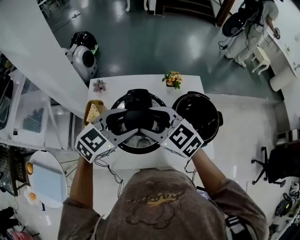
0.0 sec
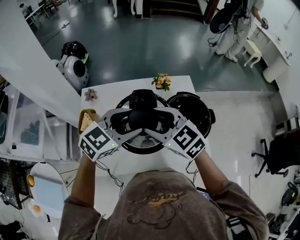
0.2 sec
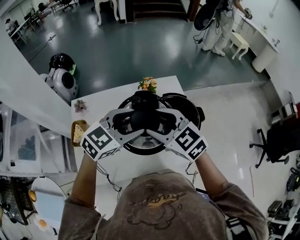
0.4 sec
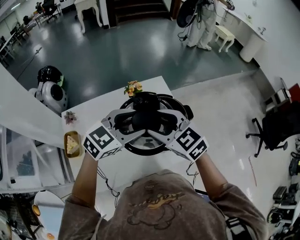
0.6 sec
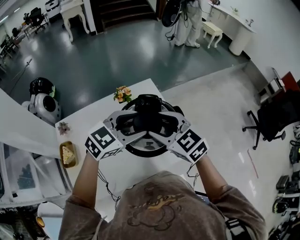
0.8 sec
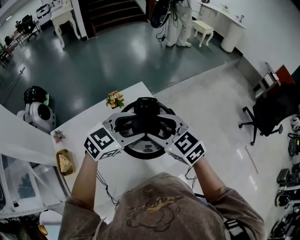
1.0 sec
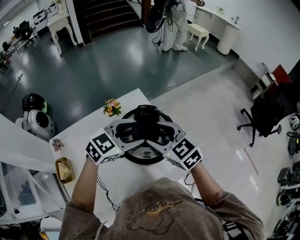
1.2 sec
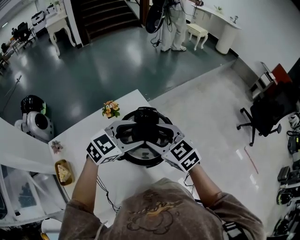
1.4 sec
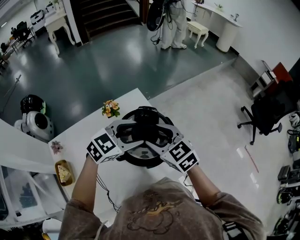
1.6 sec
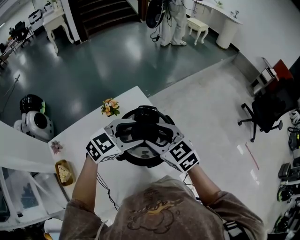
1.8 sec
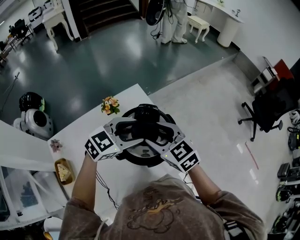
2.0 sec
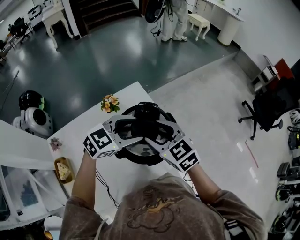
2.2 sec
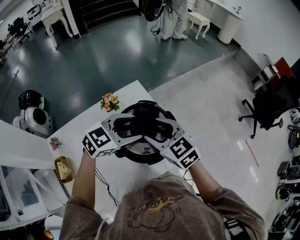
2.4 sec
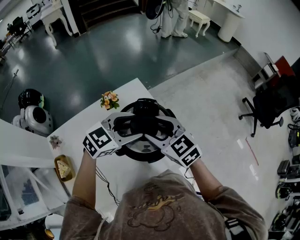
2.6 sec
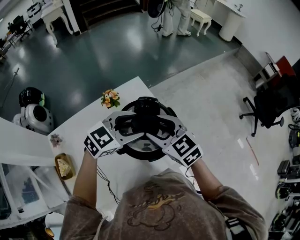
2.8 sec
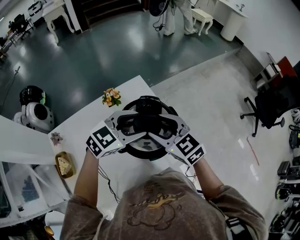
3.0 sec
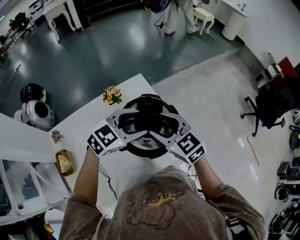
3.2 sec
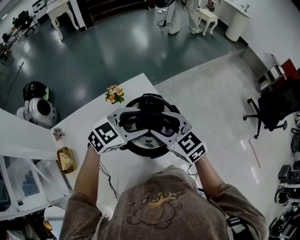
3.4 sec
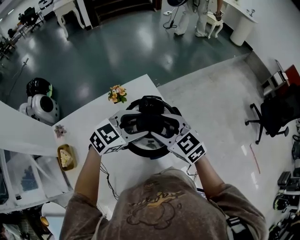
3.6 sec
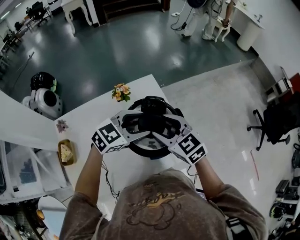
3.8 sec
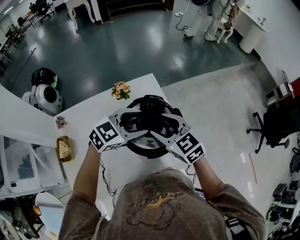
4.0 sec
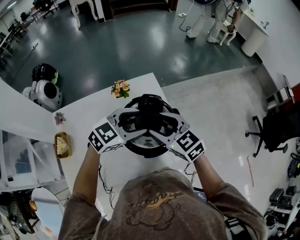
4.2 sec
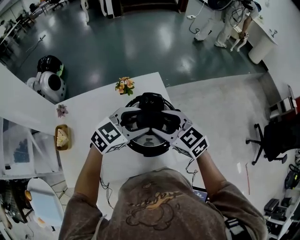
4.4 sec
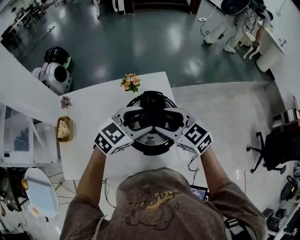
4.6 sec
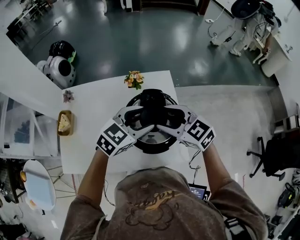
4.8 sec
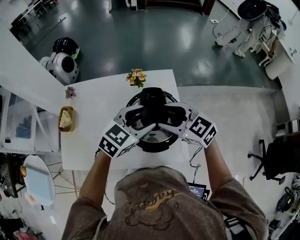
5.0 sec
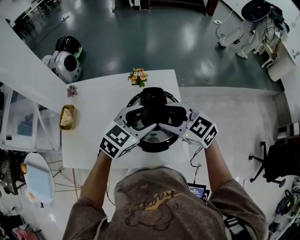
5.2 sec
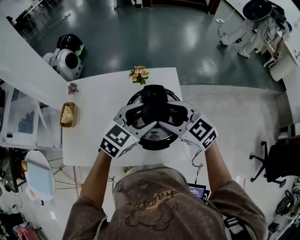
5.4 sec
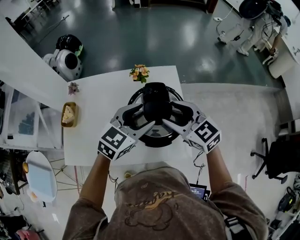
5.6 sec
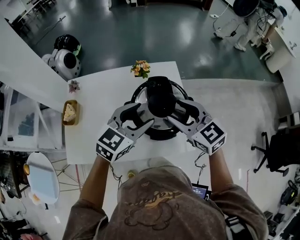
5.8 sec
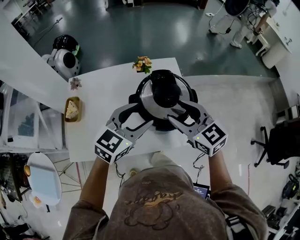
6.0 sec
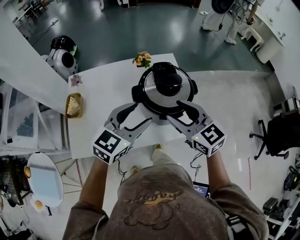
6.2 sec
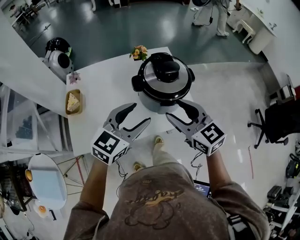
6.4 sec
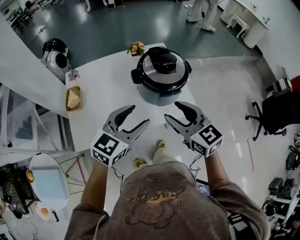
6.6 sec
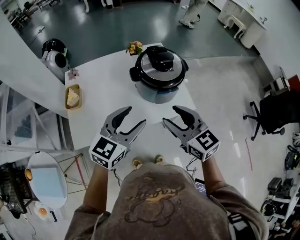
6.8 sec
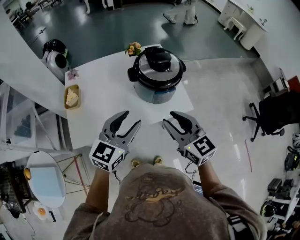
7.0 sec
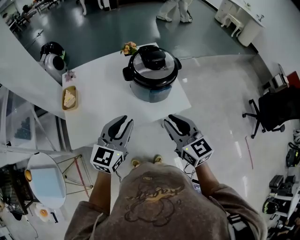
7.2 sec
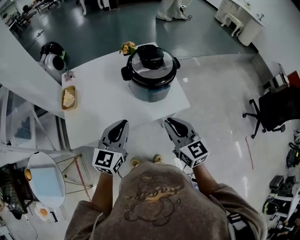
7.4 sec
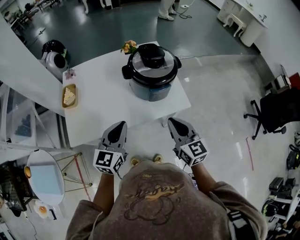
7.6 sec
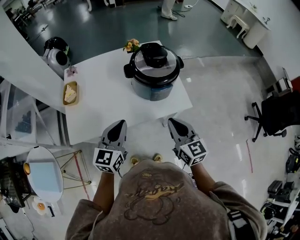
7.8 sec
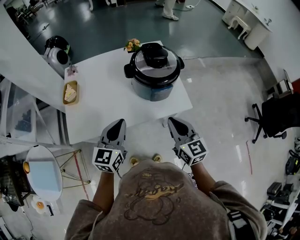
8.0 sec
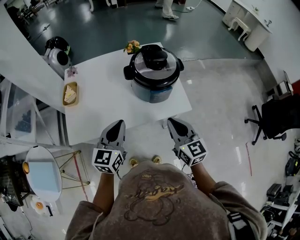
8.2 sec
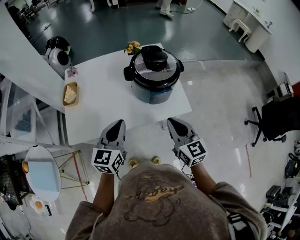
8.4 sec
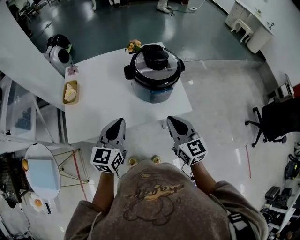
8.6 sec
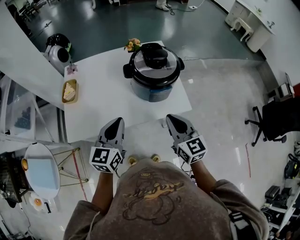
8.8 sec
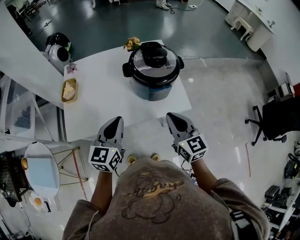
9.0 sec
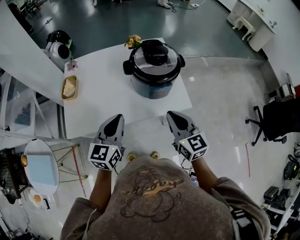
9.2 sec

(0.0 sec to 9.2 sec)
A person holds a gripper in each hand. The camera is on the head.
0.0 sec - 1.6 sec: The left gripper ends up approximately 25 cm from where it was, and changes its angle by roughly 40 degrees. Meanwhile the right gripper shifts by roughly 25 cm, and changes its angle by about 40 degrees.
1.6 sec - 3.0 sec: Both grippers stay put.
3.0 sec - 4.6 sec: The left gripper turns by about 30 degrees; the right gripper swivels approximately 30 degrees.
4.6 sec - 6.2 sec: The left gripper travels backward and to the left by about 15 cm. Meanwhile the right gripper shifts about 10 cm backward.
6.2 sec - 7.6 sec: The grippers both shift backward and downward by roughly 15 cm. The left gripper closes up. The right gripper turns by approximately 20 degrees, and closes.
7.6 sec - 9.2 sec: The grippers make only small movements.

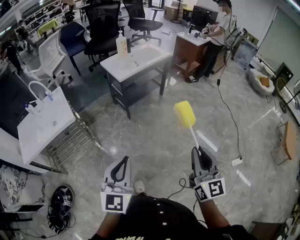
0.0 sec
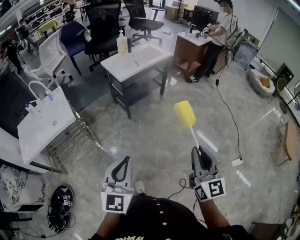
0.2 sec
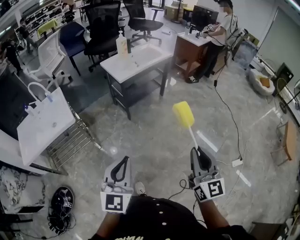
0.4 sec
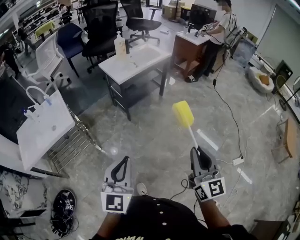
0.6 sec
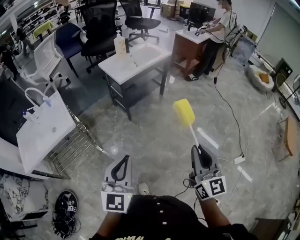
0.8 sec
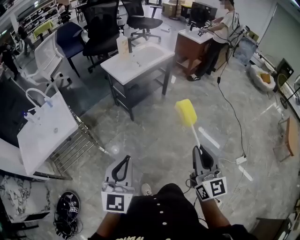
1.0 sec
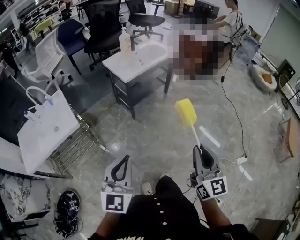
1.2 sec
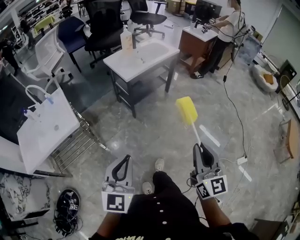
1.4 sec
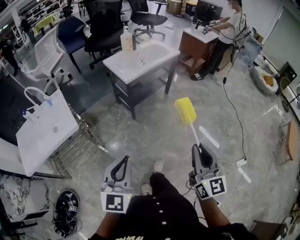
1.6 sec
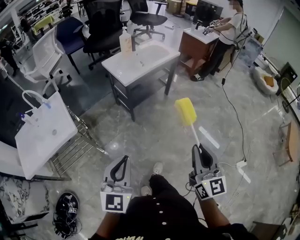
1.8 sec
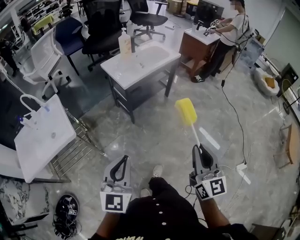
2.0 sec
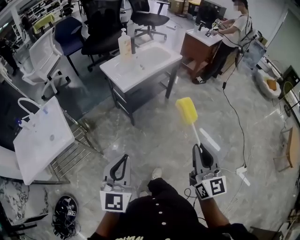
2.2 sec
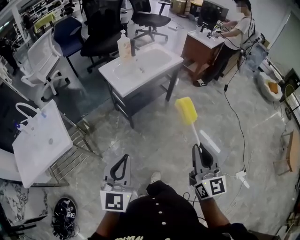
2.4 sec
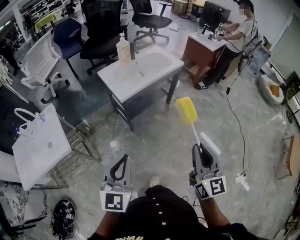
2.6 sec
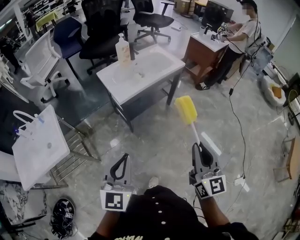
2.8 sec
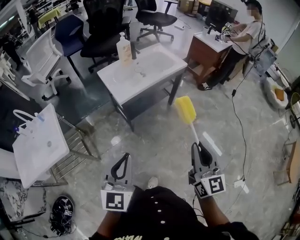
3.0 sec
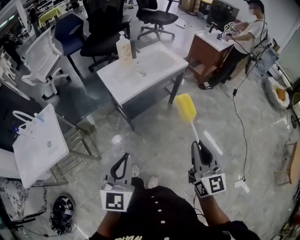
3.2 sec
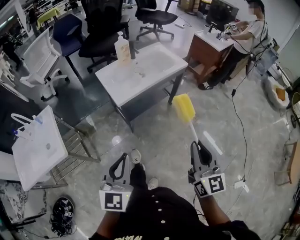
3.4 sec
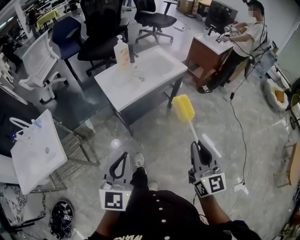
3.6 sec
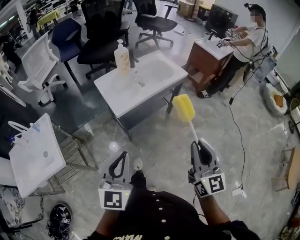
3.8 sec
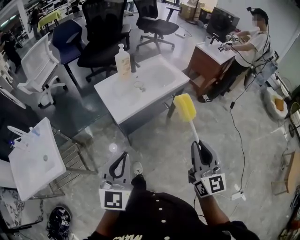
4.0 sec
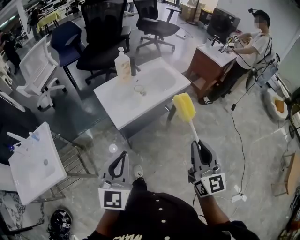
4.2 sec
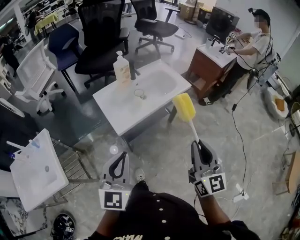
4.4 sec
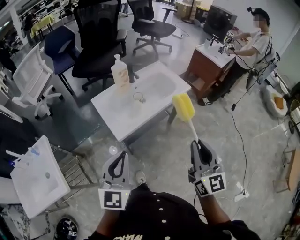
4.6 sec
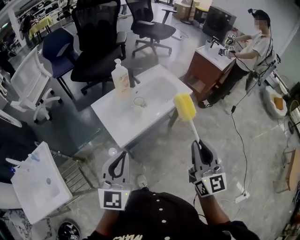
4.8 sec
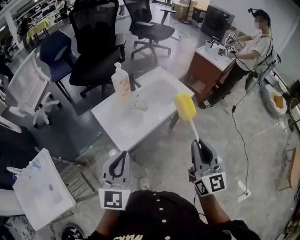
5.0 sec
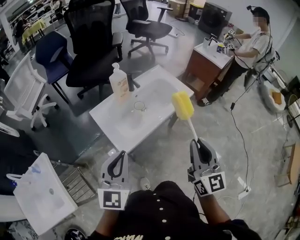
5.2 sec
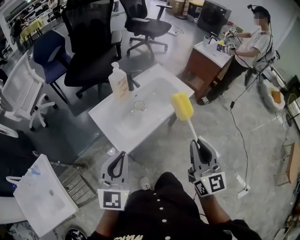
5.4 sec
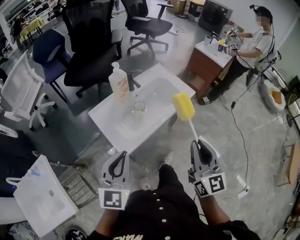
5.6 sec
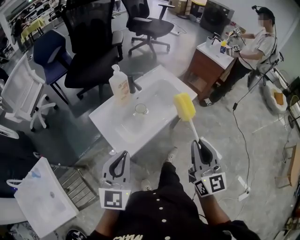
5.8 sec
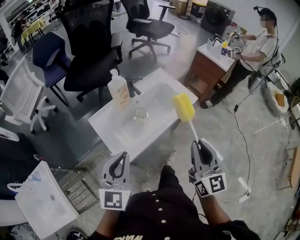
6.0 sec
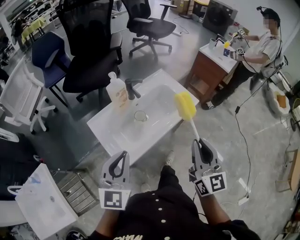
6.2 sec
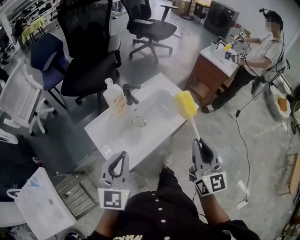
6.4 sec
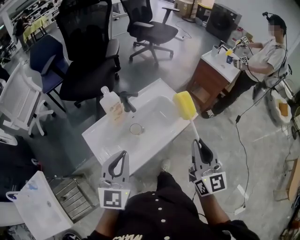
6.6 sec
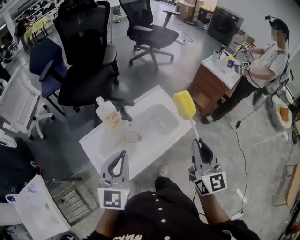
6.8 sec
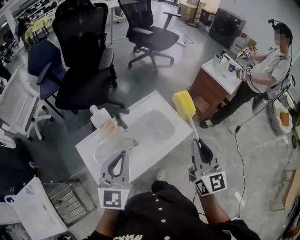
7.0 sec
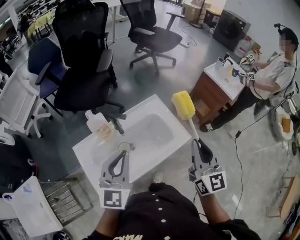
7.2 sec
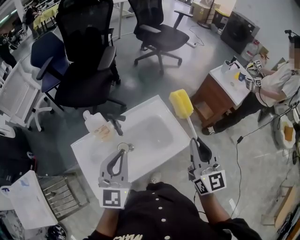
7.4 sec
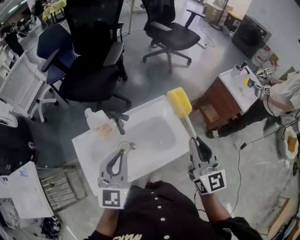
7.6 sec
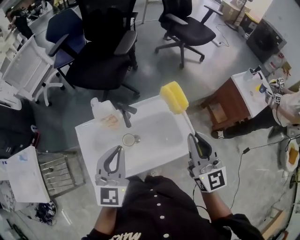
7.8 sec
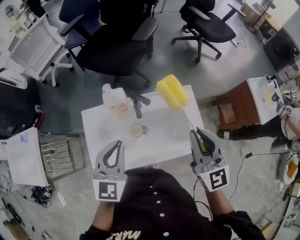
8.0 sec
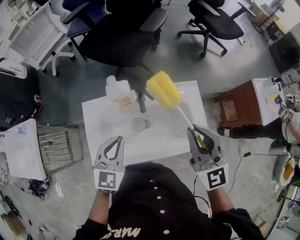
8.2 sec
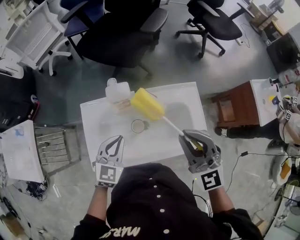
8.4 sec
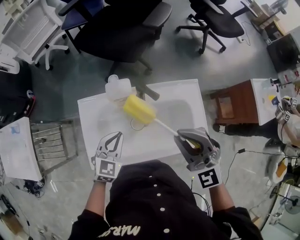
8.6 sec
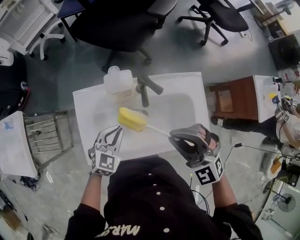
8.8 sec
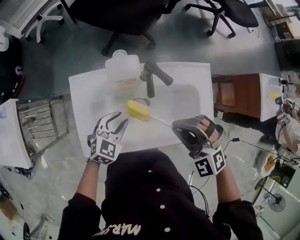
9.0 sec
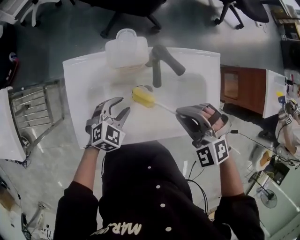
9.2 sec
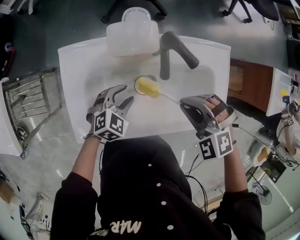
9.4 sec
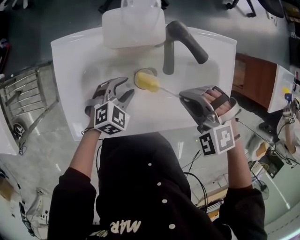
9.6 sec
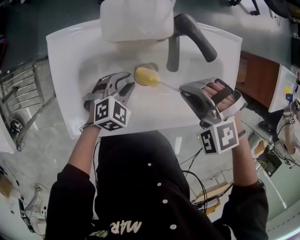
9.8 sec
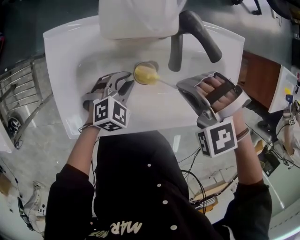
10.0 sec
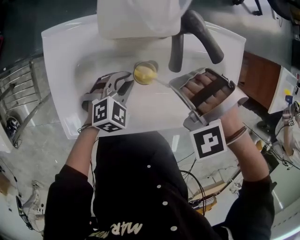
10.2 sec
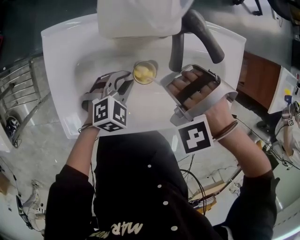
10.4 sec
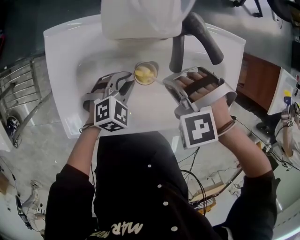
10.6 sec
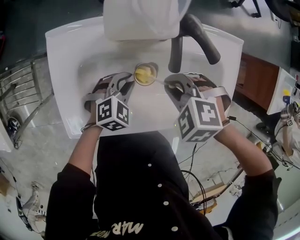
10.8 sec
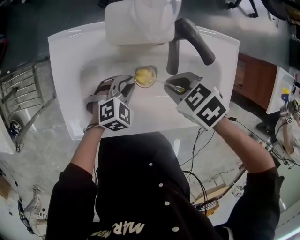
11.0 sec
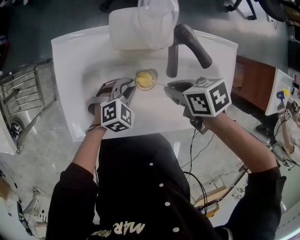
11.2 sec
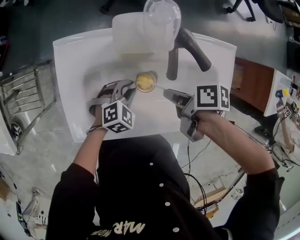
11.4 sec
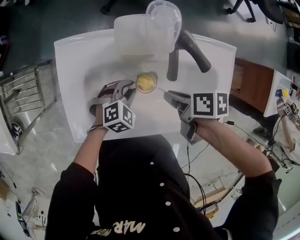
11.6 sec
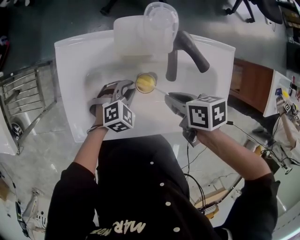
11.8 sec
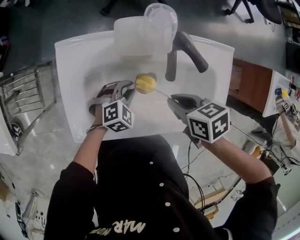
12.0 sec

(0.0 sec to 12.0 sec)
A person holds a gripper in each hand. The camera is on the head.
0.0 sec - 1.6 sec: The two grippers go approximately 15 cm forward and to the left.
1.6 sec - 3.0 sec: The two grippers go some 25 cm forward.
3.0 sec - 4.4 sec: The two grippers go roughly 20 cm forward.
4.4 sec - 6.0 sec: Both grippers travel together forward, approximately 20 cm.
6.0 sec - 7.6 sec: The left gripper moves forward and to the right, roughly 30 cm; the right gripper is displaced forward by about 35 cm.
7.6 sec - 9.0 sec: The right gripper moves to the left, downward and forward, roughly 25 cm, and angles its fingers downward, by approximately 40 degrees. The left gripper travels downward by about 30 cm, tips its fingers downward by roughly 30 degrees, and opens.
9.0 sec - 10.4 sec: Both grippers travel together downward, about 15 cm. The right gripper points its fingers approximately 30 degrees further downward.
10.4 sec - 12.0 sec: The right gripper rolls clockwise, seen from behind, by some 110 degrees.

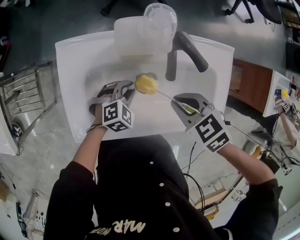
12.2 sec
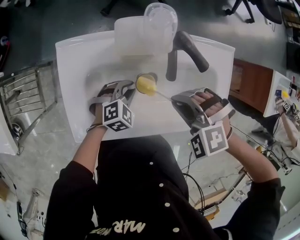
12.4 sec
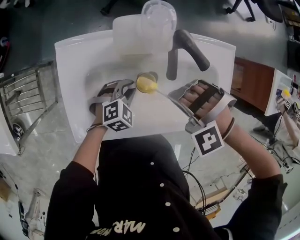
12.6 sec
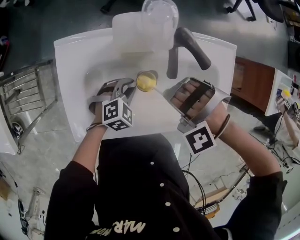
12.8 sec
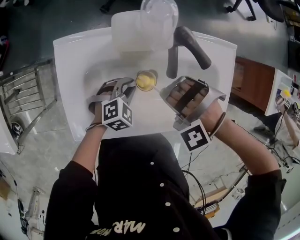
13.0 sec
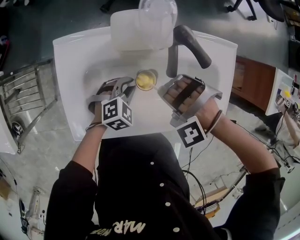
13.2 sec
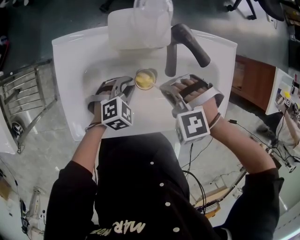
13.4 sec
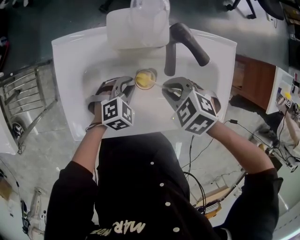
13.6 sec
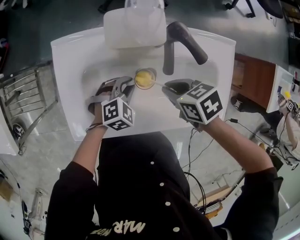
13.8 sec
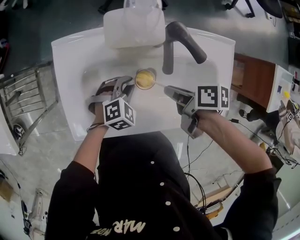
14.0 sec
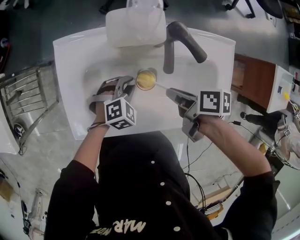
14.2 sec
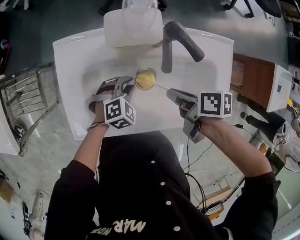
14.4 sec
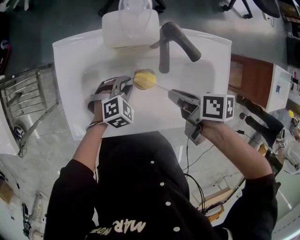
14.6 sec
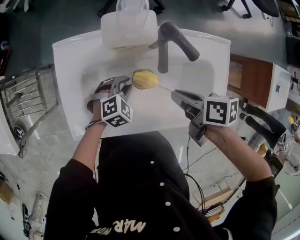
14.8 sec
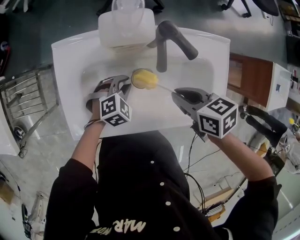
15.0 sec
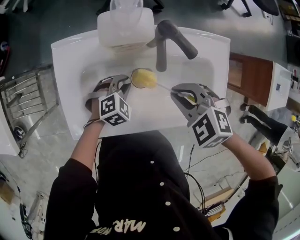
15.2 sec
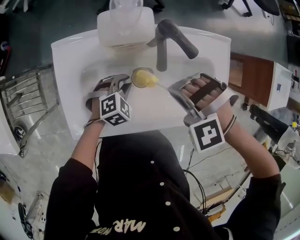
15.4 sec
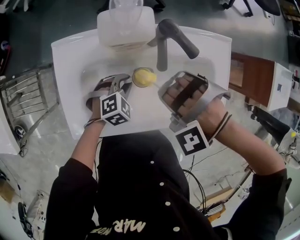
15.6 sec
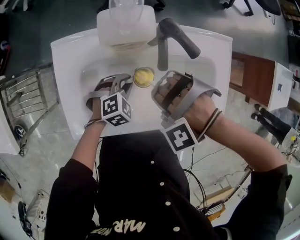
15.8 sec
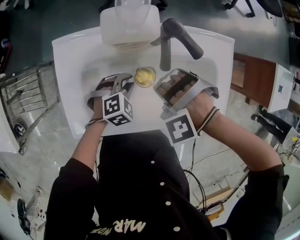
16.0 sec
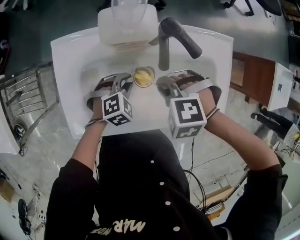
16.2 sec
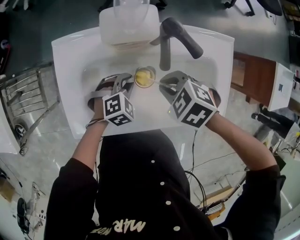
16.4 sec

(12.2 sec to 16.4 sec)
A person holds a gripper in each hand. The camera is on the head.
12.2 sec - 13.6 sec: The right gripper goes about 5 cm downward.
13.6 sec - 15.0 sec: The right gripper shifts by some 5 cm, and rotates around the line of its fingers by some 40 degrees, clockwise from behind.
15.0 sec - 16.4 sec: The right gripper ends up approximately 5 cm from where it was, and twists approximately 40 degrees counterclockwise, seen from behind.
